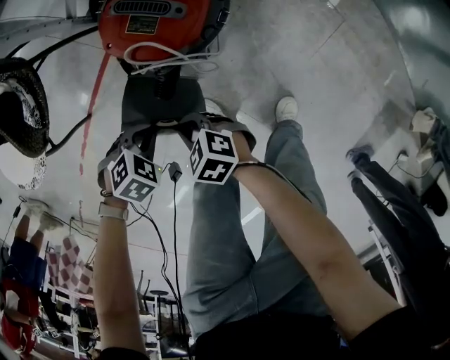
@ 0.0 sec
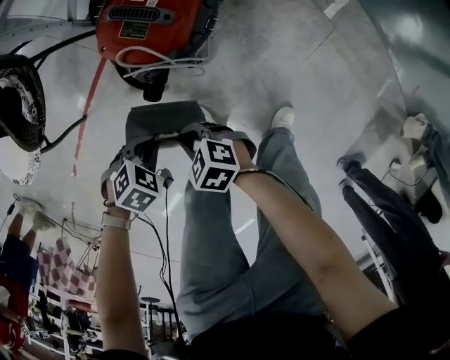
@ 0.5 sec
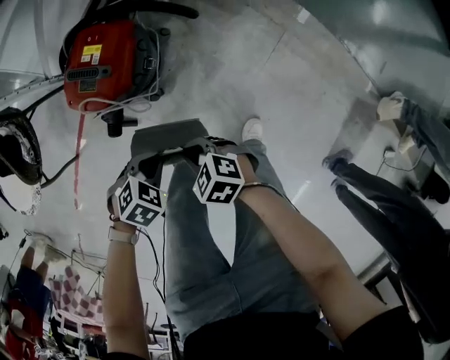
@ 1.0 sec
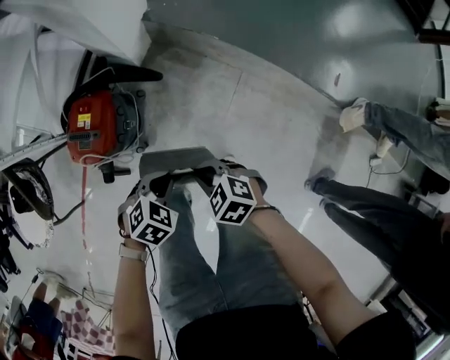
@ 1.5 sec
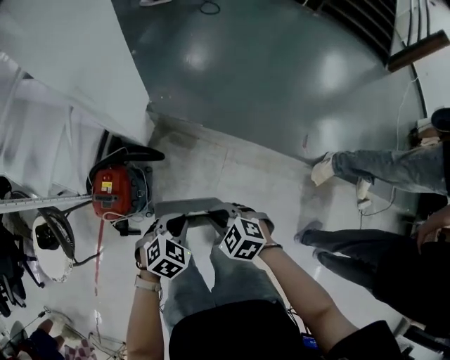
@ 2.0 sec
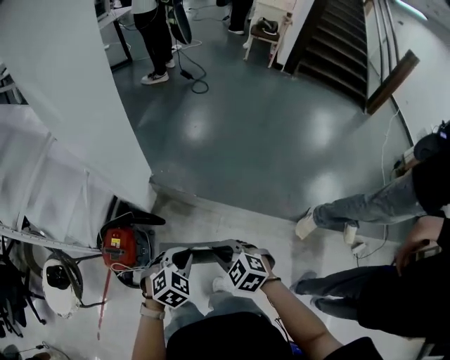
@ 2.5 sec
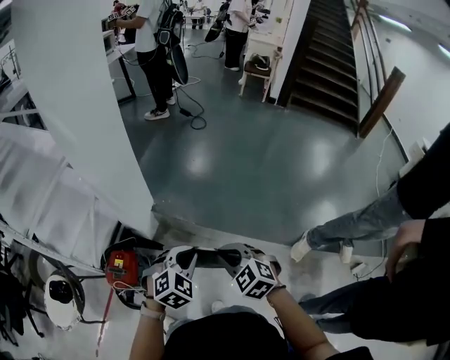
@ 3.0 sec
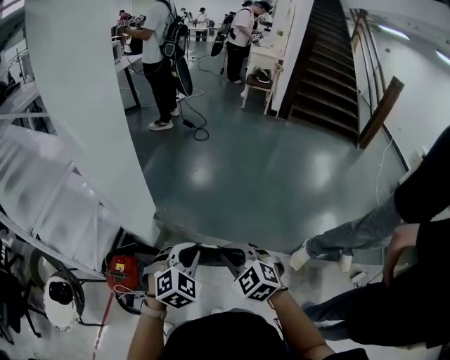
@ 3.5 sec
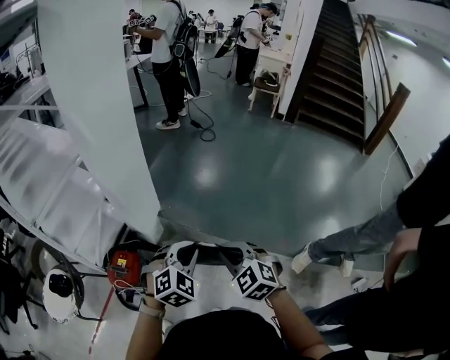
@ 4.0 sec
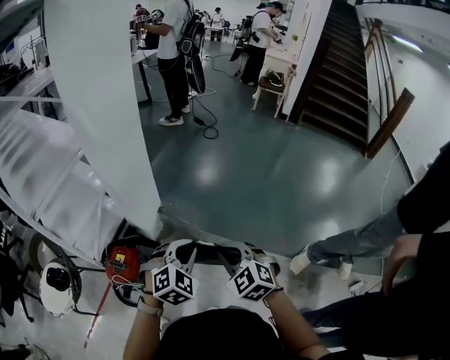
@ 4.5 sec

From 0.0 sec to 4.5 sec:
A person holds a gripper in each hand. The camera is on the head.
From 0.0 sec to 2.0 sec: The pair of grippers is taken about 50 cm. The left gripper swivels approximately 30 degrees; the right gripper turns by about 30 degrees.
From 2.0 sec to 4.5 sec: Both grippers travel together upward, some 30 cm. The right gripper rotates approximately 30 degrees. The left gripper turns by approximately 30 degrees.

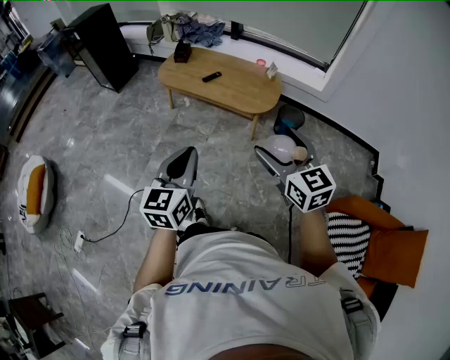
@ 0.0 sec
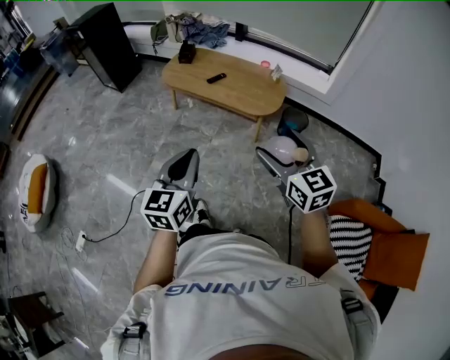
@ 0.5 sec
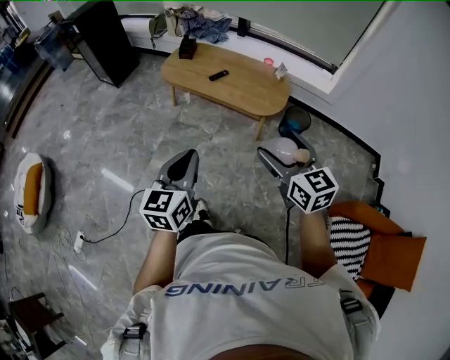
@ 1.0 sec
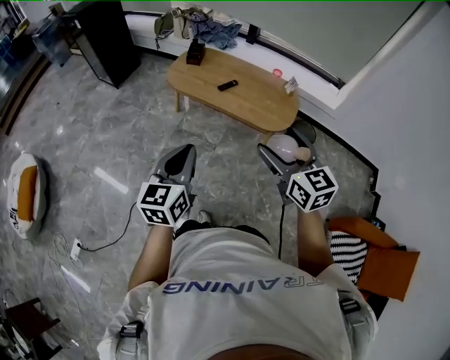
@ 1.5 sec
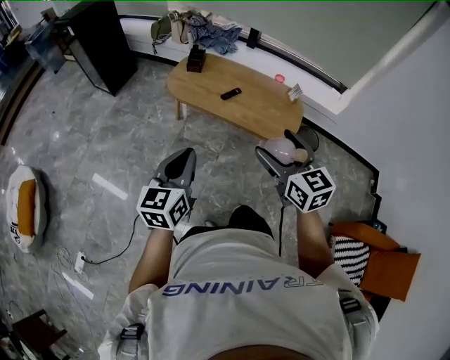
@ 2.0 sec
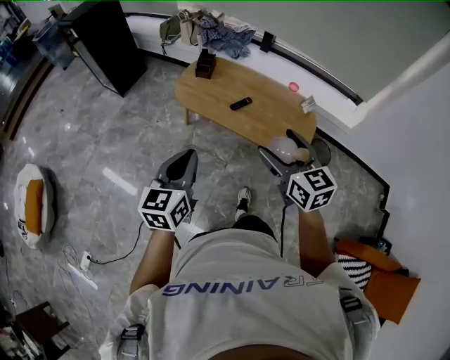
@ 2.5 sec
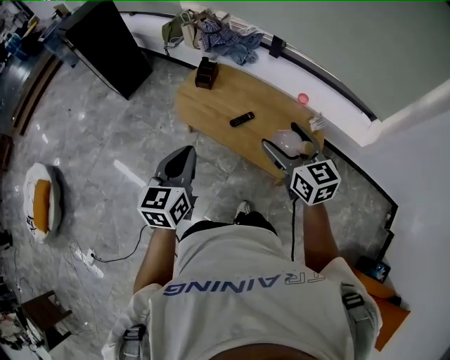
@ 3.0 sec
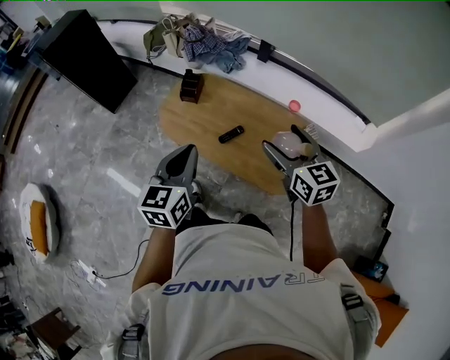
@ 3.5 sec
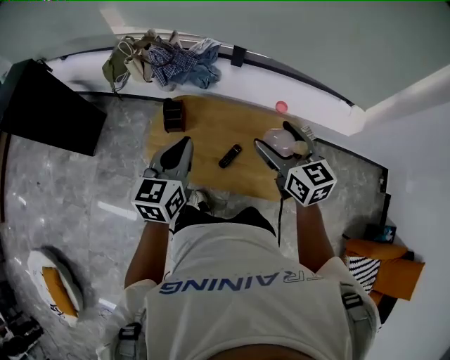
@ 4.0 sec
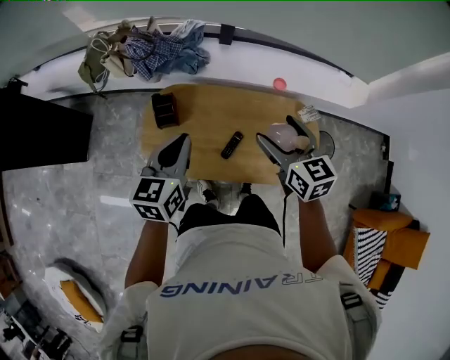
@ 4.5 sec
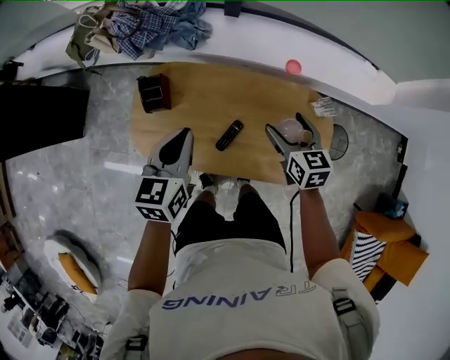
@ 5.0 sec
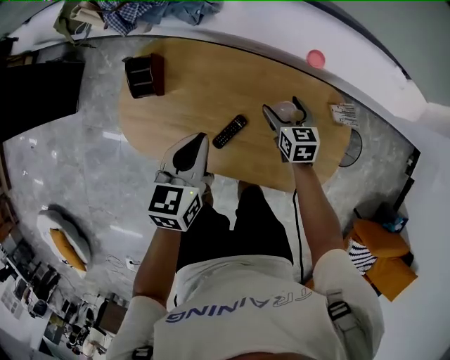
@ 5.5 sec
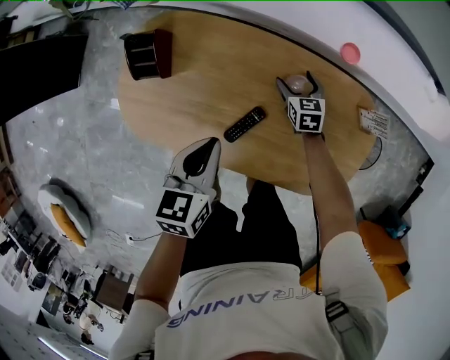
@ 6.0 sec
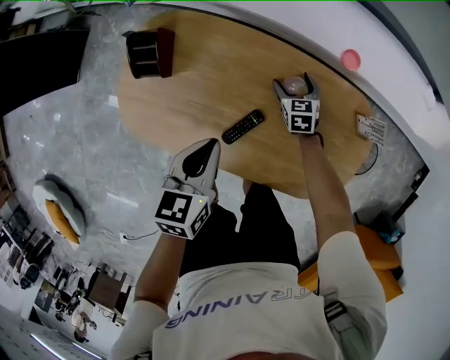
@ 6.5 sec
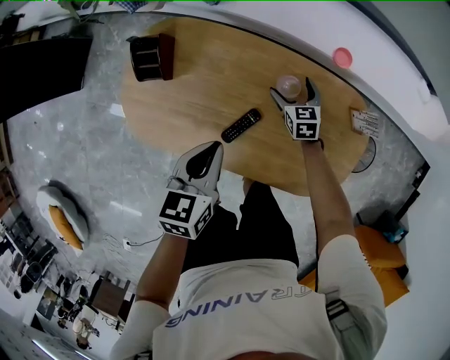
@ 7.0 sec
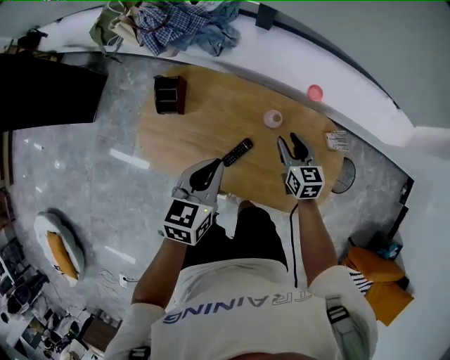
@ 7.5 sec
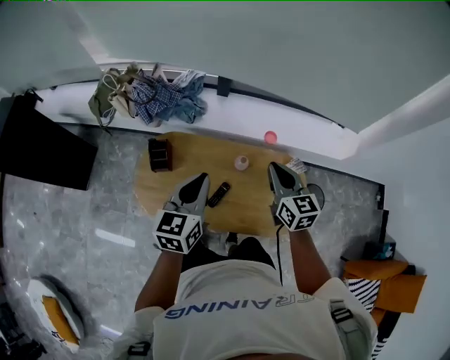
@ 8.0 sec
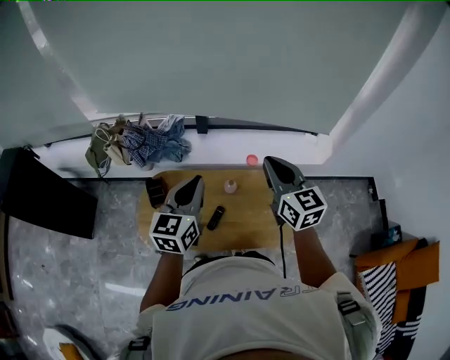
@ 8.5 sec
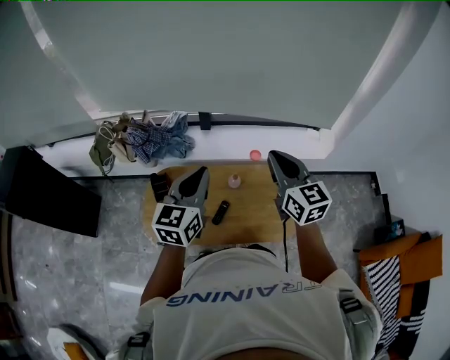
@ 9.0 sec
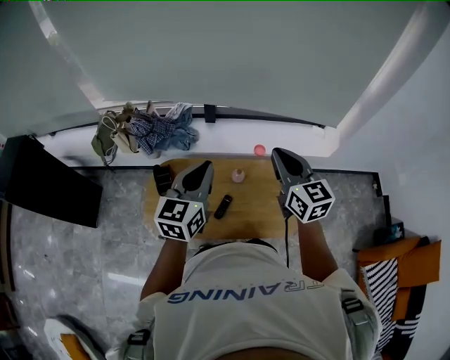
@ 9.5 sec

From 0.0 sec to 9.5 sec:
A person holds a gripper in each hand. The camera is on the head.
From 0.0 sec to 2.0 sec: The grippers both shift forward and to the left by some 30 cm.
From 2.0 sec to 4.0 sec: Both grippers are carried forward, about 60 cm.
From 4.0 sec to 5.5 sec: The right gripper is displaced downward by about 50 cm, and changes its angle by about 30 degrees, while the left gripper shifts roughly 30 cm downward, and rotates approximately 20 degrees.
From 5.5 sec to 7.5 sec: The grippers both shift upward by about 10 cm. The right gripper closes up.
From 7.5 sec to 9.5 sec: The left gripper travels upward by roughly 30 cm, and rotates roughly 30 degrees, while the right gripper heads upward, covering approximately 40 cm, and rotates some 30 degrees.

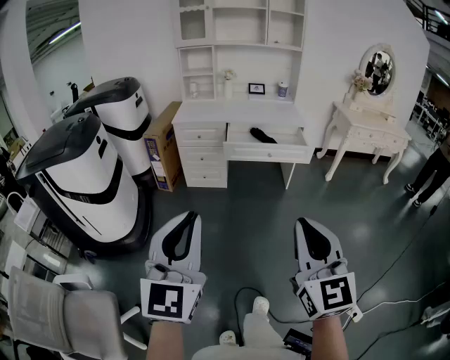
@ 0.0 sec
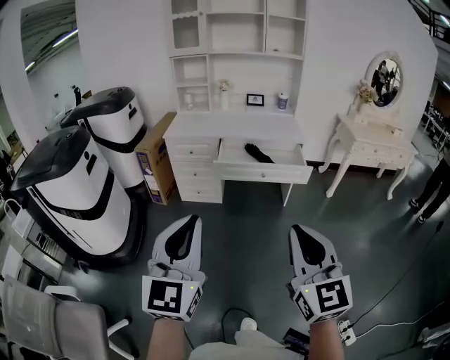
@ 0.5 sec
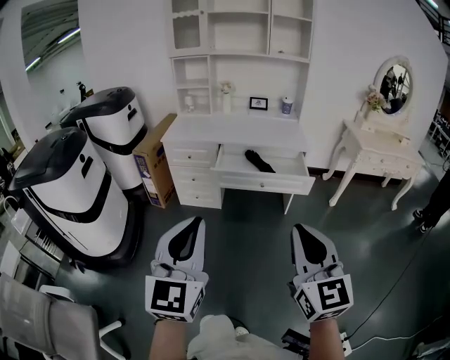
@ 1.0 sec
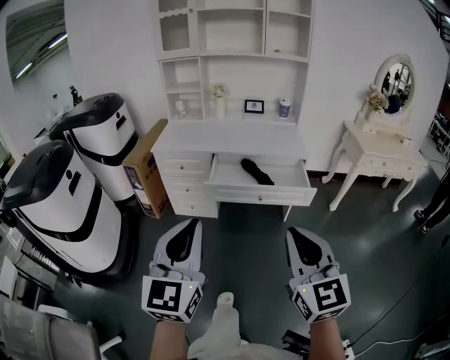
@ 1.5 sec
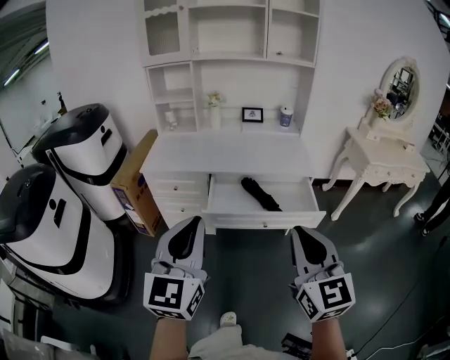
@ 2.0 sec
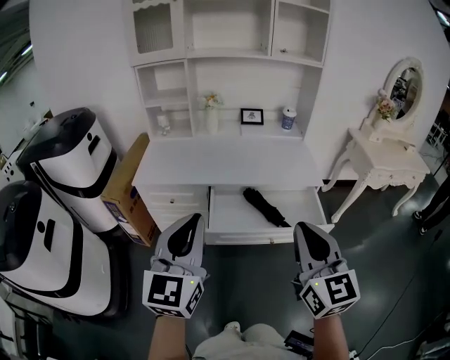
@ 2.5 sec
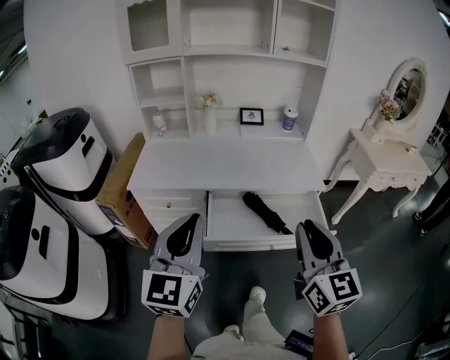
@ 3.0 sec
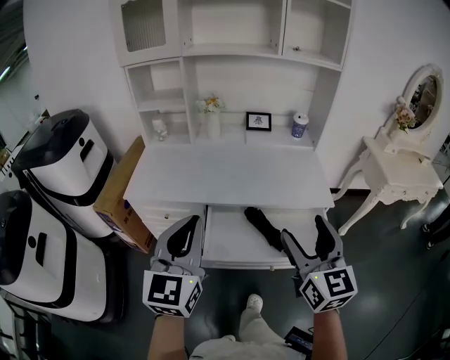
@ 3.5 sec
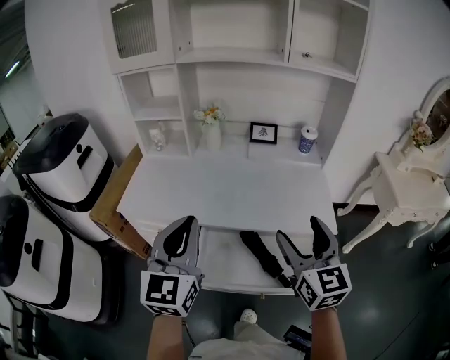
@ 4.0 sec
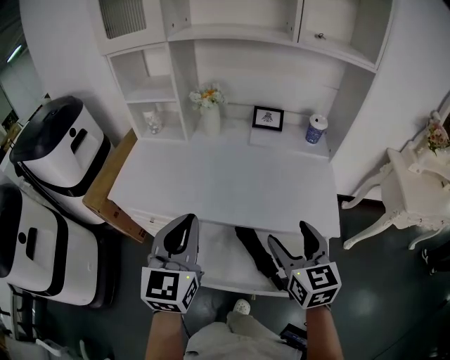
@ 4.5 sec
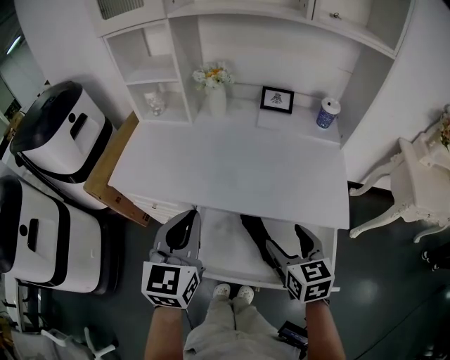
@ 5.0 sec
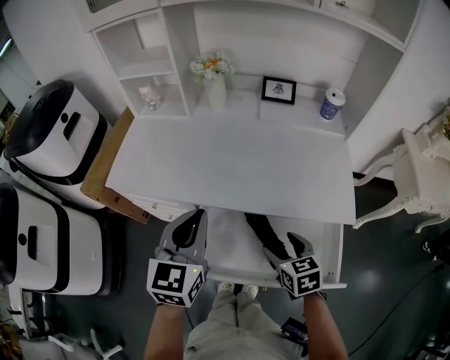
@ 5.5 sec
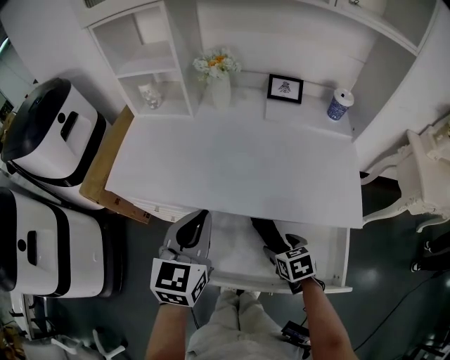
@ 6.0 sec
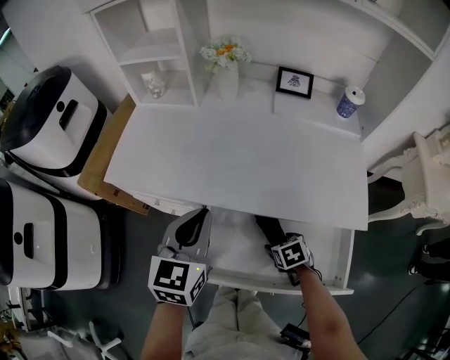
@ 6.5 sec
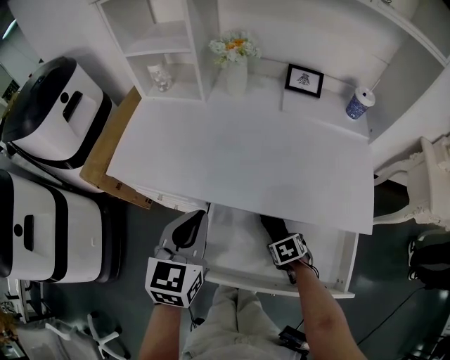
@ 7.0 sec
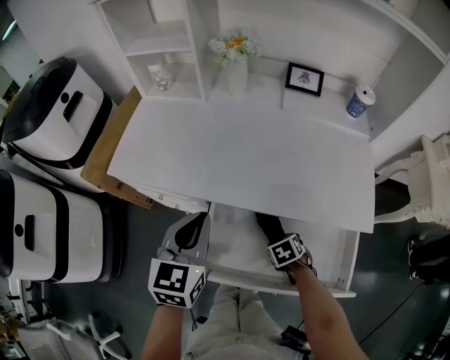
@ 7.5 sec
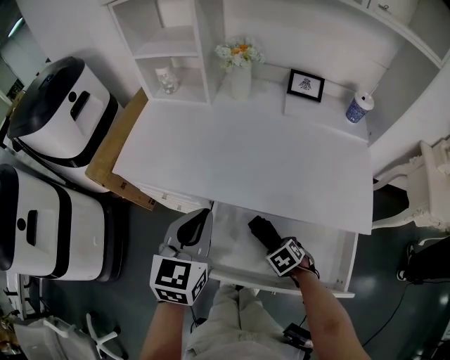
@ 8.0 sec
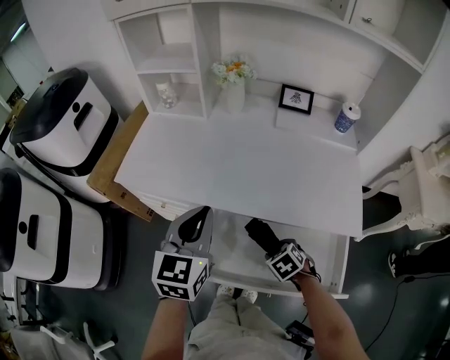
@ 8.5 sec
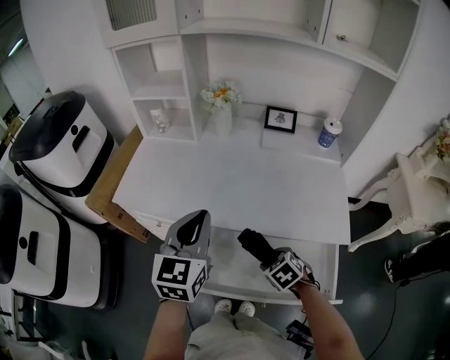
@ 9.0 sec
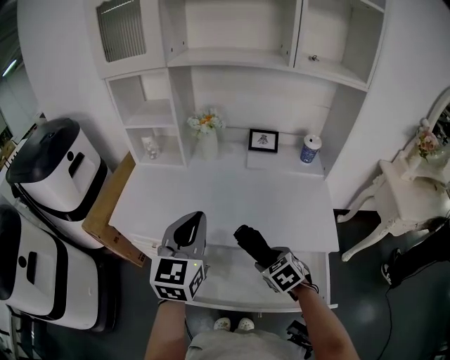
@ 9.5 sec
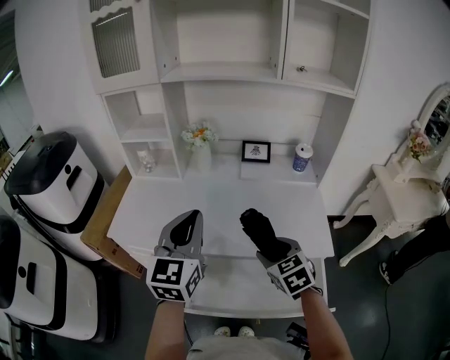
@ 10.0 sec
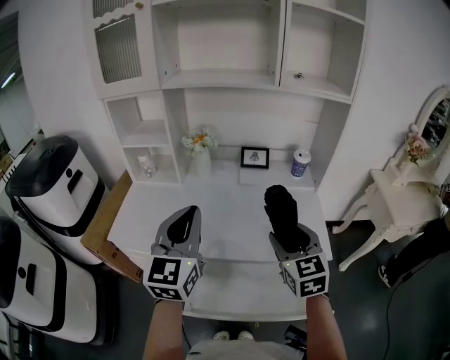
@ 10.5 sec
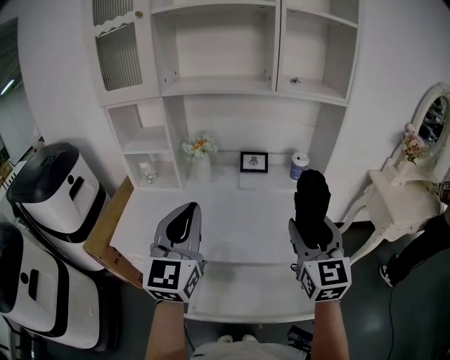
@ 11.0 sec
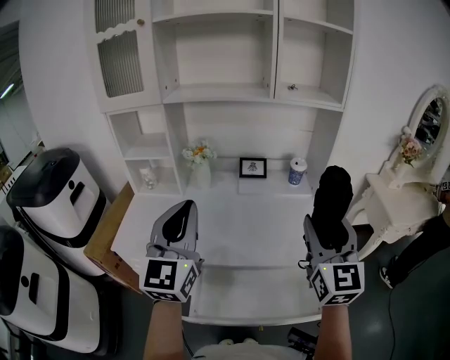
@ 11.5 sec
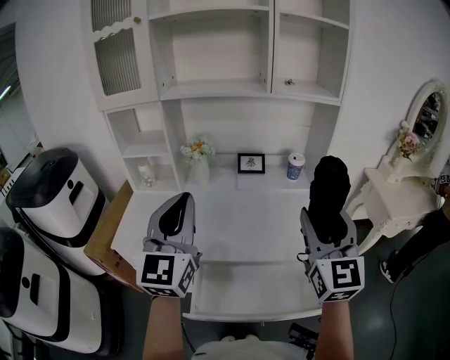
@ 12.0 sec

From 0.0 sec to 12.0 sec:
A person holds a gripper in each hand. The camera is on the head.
From 0.0 sec to 2.0 sec: The two grippers travel together, forward, approximately 50 cm.
From 2.0 sec to 4.0 sec: Both grippers travel together forward, approximately 35 cm. The right gripper opens its fingers.
From 4.0 sec to 6.0 sec: The left gripper moves downward and forward, some 15 cm; the right gripper heads downward, covering about 35 cm, and tilts its fingers roughly 50 degrees downward.
From 6.0 sec to 8.0 sec: The right gripper moves downward, approximately 10 cm, and swivels approximately 30 degrees.
From 8.0 sec to 10.0 sec: The left gripper shifts roughly 15 cm upward, and changes its angle by roughly 20 degrees; the right gripper heads upward, covering roughly 30 cm, and angles its fingers upward, by roughly 40 degrees.
From 10.0 sec to 12.0 sec: The left gripper moves upward, approximately 10 cm. Meanwhile the right gripper travels upward by some 25 cm, and tilts its fingers approximately 50 degrees upward.
